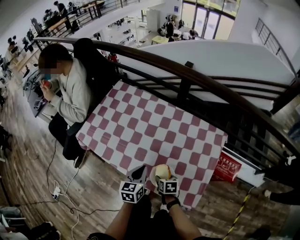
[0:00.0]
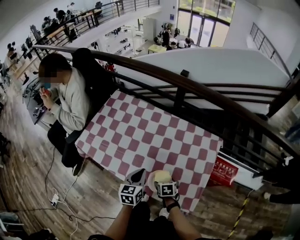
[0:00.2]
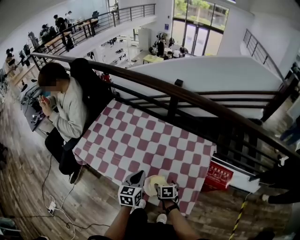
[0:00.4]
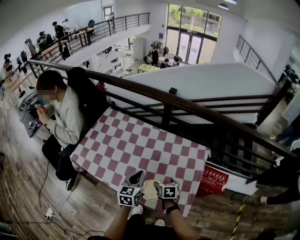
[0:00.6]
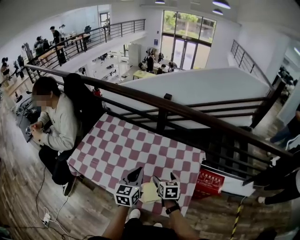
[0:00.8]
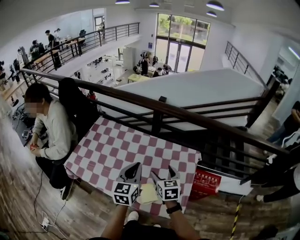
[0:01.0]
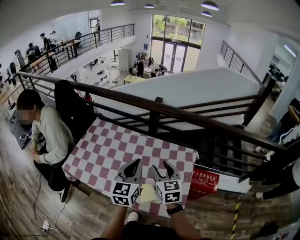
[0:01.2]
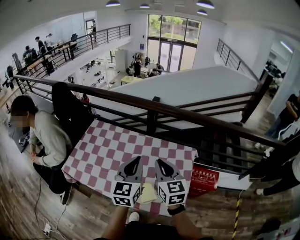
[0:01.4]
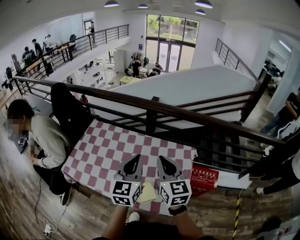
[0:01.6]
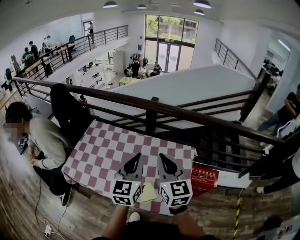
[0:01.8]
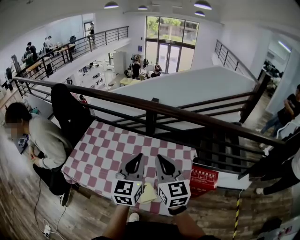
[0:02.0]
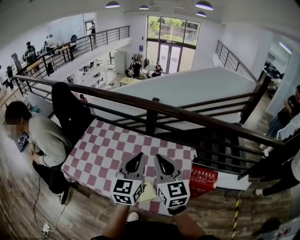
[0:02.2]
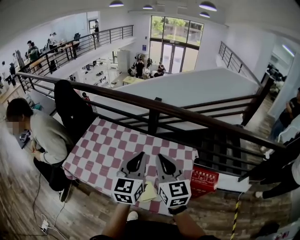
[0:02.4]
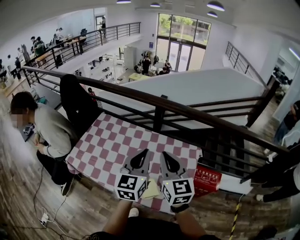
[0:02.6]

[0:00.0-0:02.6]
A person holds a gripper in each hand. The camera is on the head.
0:00.0 to 0:01.2: The two grippers go roughly 30 cm upward. The left gripper rotates approximately 30 degrees, while the right gripper tilts its fingers some 40 degrees upward, and opens, then closes again.
0:01.2 to 0:02.6: The right gripper travels upward by roughly 10 cm, and closes its fingers.

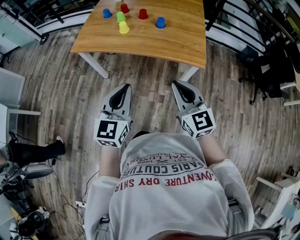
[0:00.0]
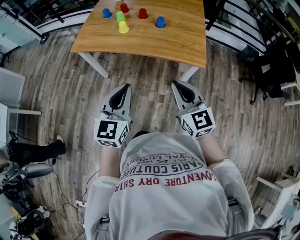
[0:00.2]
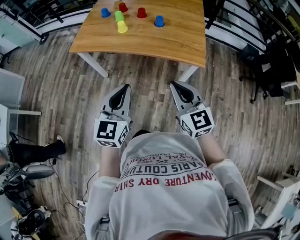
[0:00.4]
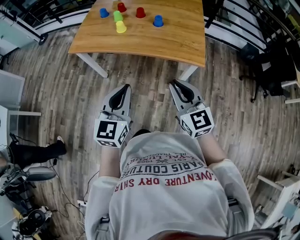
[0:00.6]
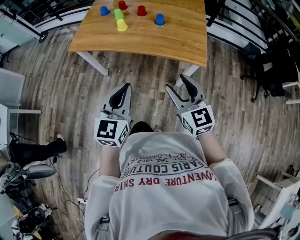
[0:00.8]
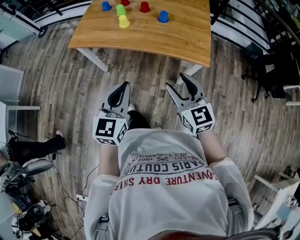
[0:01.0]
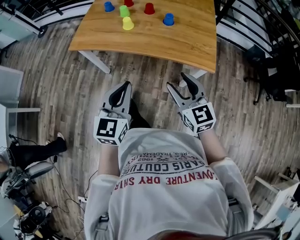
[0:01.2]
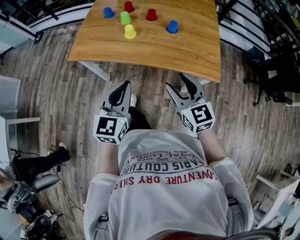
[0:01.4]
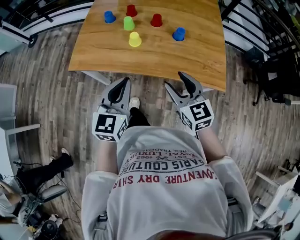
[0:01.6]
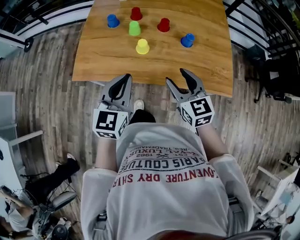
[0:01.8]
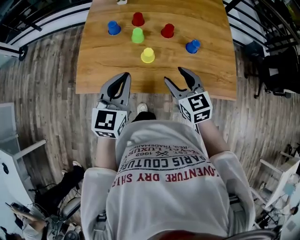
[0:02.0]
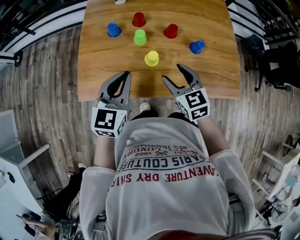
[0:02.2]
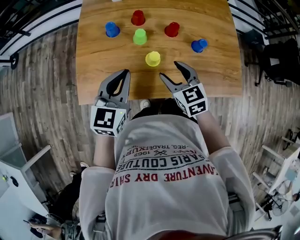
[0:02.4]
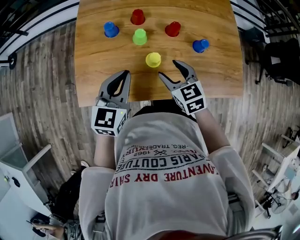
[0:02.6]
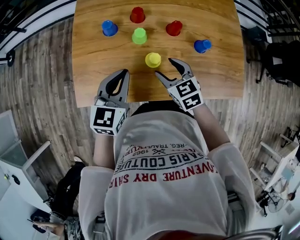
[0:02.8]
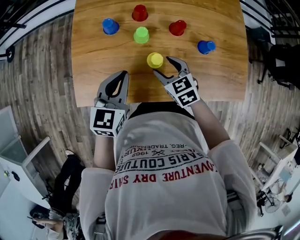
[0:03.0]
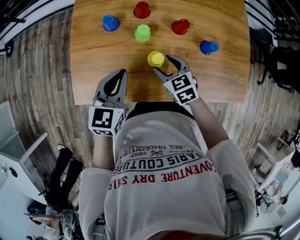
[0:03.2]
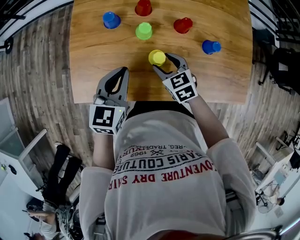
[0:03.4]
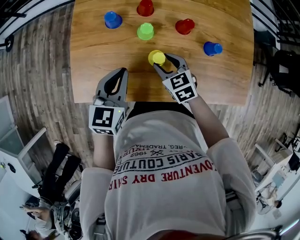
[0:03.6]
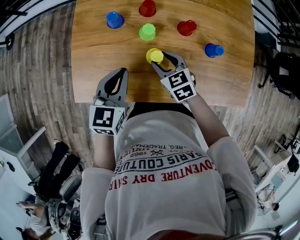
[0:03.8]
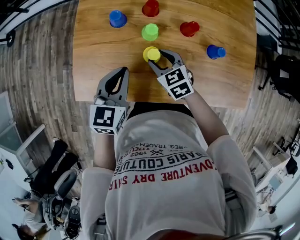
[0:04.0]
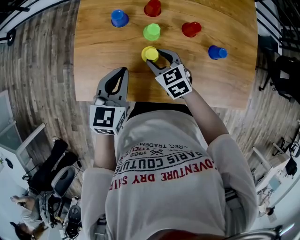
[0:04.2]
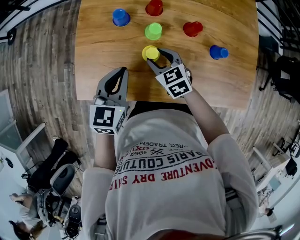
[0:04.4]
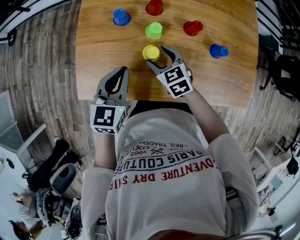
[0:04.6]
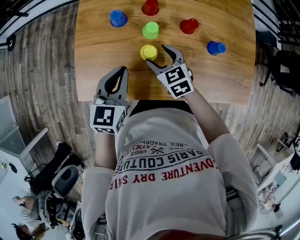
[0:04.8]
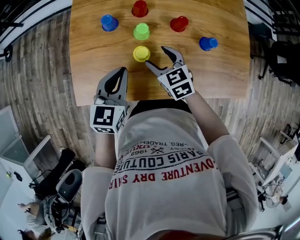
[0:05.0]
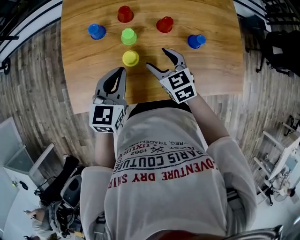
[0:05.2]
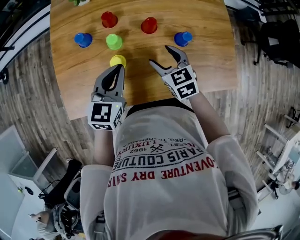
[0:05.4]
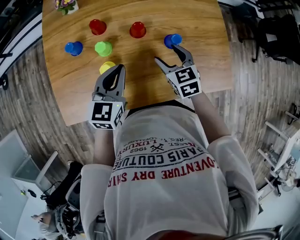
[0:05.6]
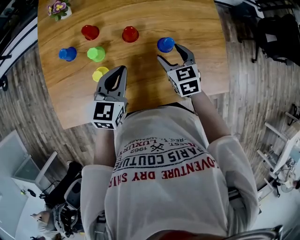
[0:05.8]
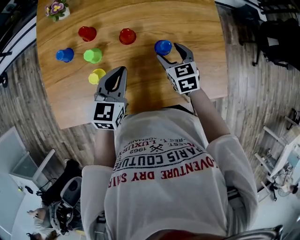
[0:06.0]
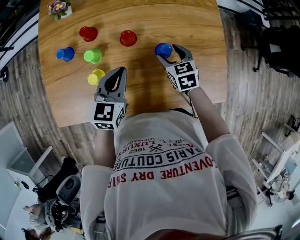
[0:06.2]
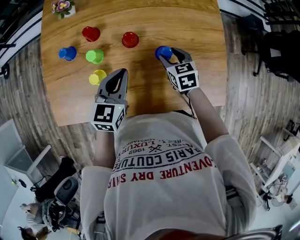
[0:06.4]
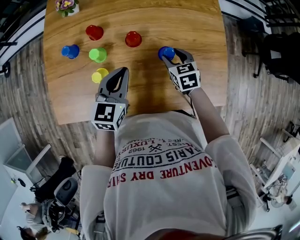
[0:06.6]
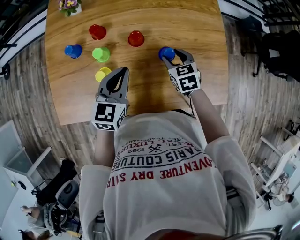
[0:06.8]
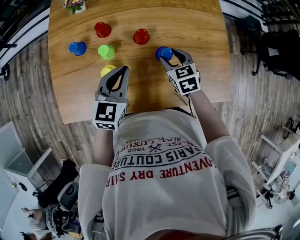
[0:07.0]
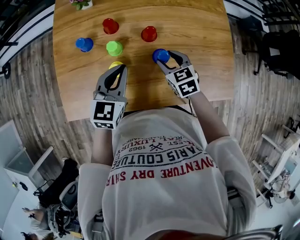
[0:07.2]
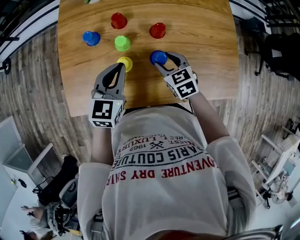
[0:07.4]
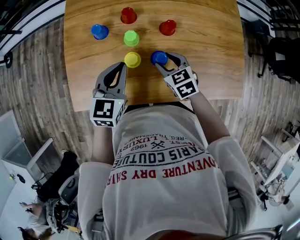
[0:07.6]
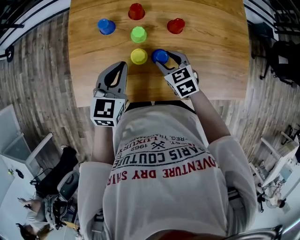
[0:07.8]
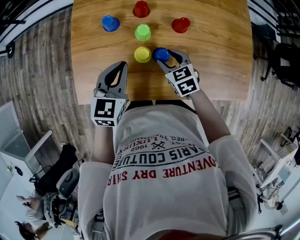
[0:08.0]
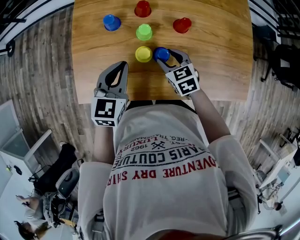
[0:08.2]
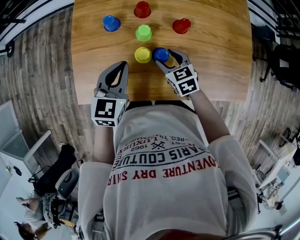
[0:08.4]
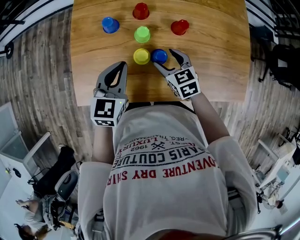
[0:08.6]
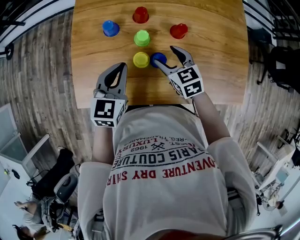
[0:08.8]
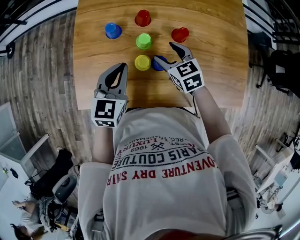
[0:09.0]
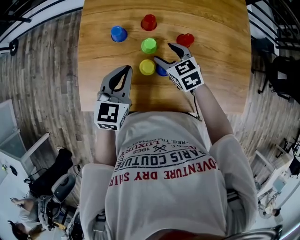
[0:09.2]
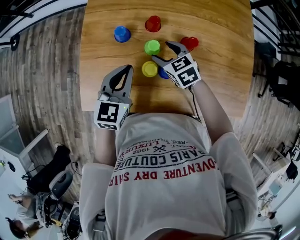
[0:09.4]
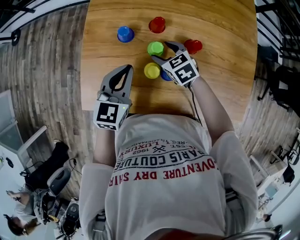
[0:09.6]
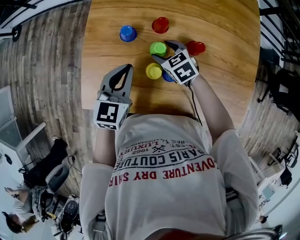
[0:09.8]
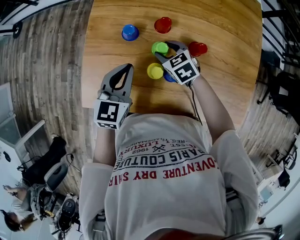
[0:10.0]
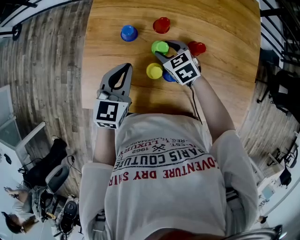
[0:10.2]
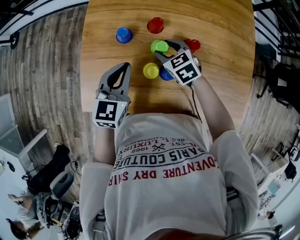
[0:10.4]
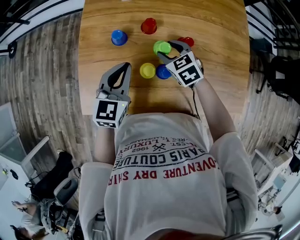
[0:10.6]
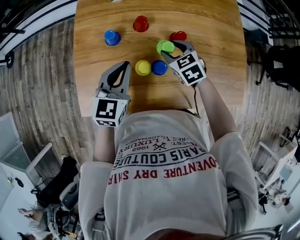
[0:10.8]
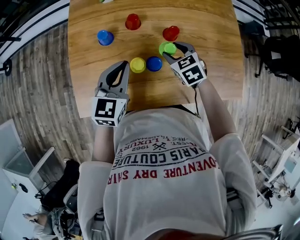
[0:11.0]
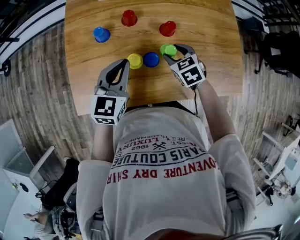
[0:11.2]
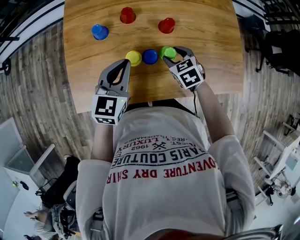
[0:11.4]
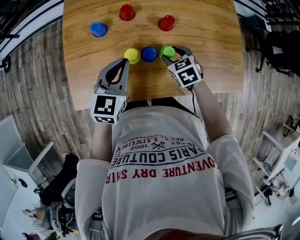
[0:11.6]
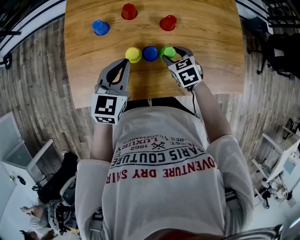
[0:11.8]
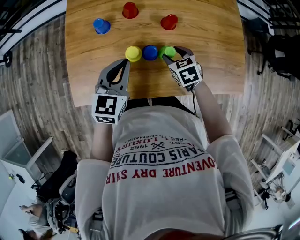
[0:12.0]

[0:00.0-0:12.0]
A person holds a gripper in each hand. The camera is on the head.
0:00.0 to 0:01.6: The grippers both shift forward and to the left by about 25 cm. The right gripper opens up.
0:01.6 to 0:03.0: The right gripper heads forward, to the left and downward, covering approximately 30 cm, and turns by approximately 30 degrees. Meanwhile the left gripper is displaced forward and to the left by approximately 25 cm.
0:03.0 to 0:04.4: The right gripper moves to the left, some 5 cm.
0:04.4 to 0:06.0: The two grippers go roughly 25 cm to the right. The right gripper turns by some 30 degrees.
0:06.0 to 0:07.6: The grippers both shift to the left by roughly 20 cm.
0:07.6 to 0:09.0: The right gripper moves forward, approximately 5 cm.
0:09.0 to 0:10.4: The right gripper is displaced forward by about 5 cm.
0:10.4 to 0:12.0: The right gripper is displaced to the right and backward by about 15 cm, and changes its angle by approximately 20 degrees. Meanwhile the left gripper shifts some 10 cm to the right and backward.

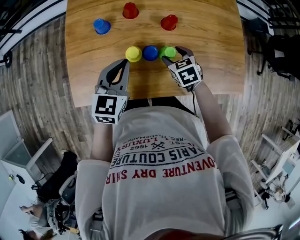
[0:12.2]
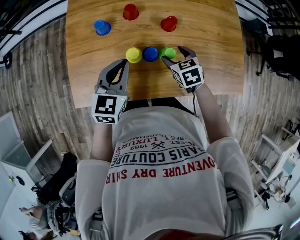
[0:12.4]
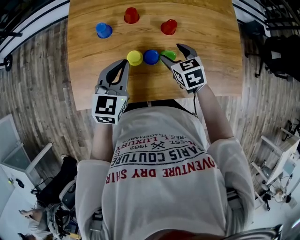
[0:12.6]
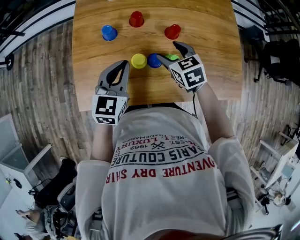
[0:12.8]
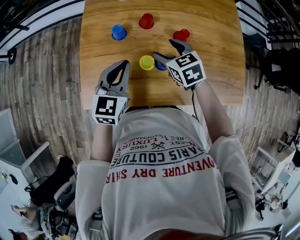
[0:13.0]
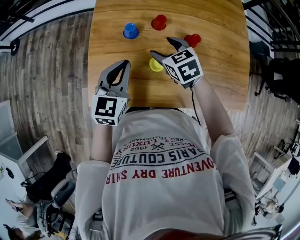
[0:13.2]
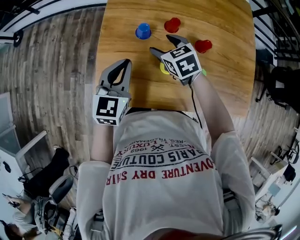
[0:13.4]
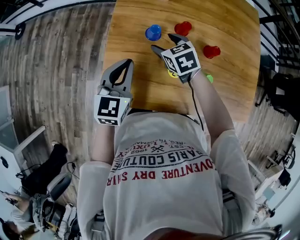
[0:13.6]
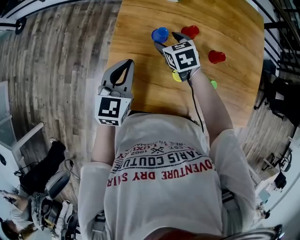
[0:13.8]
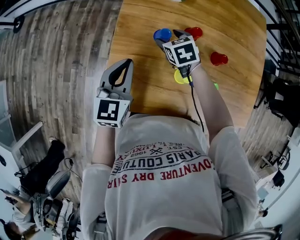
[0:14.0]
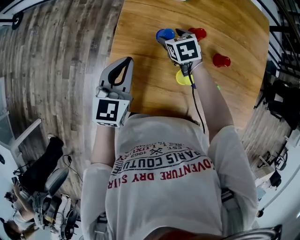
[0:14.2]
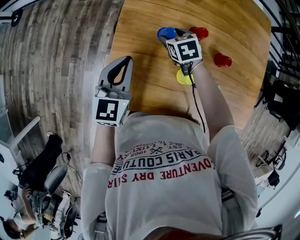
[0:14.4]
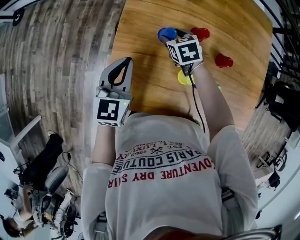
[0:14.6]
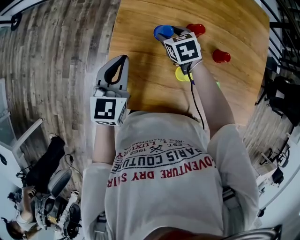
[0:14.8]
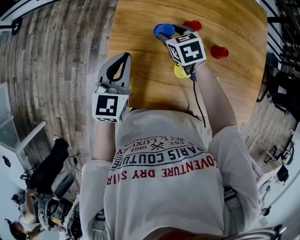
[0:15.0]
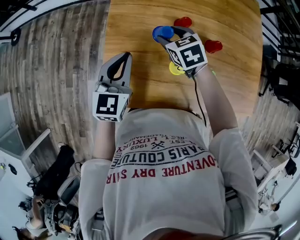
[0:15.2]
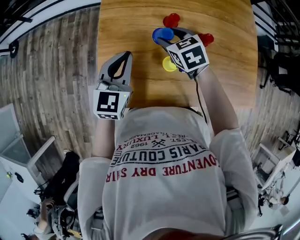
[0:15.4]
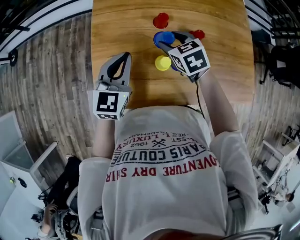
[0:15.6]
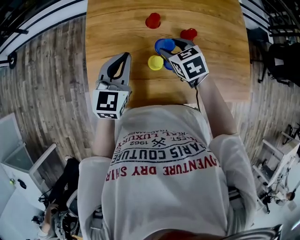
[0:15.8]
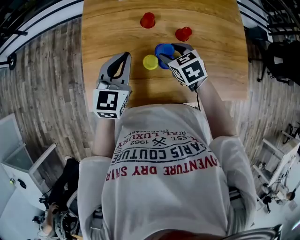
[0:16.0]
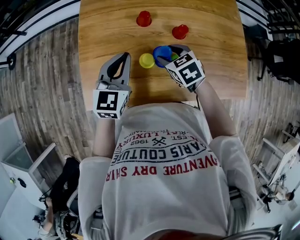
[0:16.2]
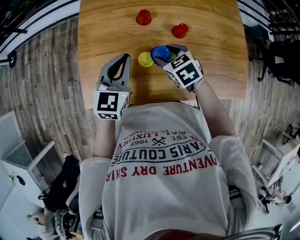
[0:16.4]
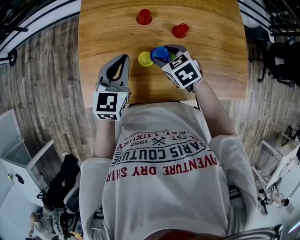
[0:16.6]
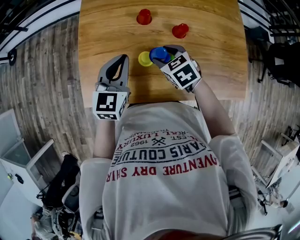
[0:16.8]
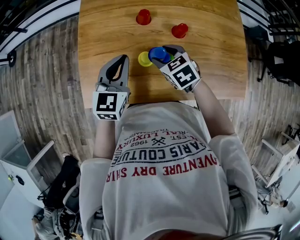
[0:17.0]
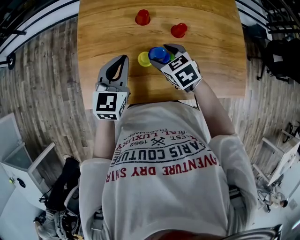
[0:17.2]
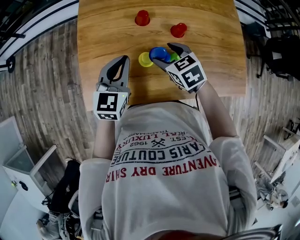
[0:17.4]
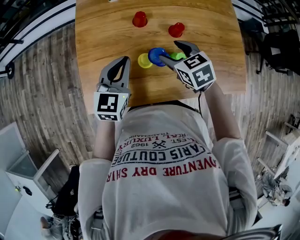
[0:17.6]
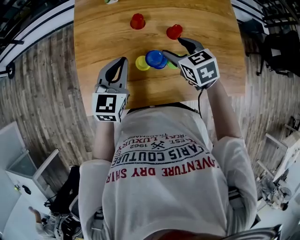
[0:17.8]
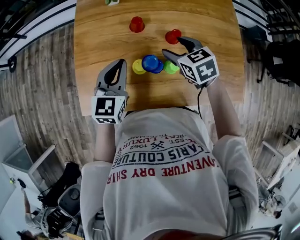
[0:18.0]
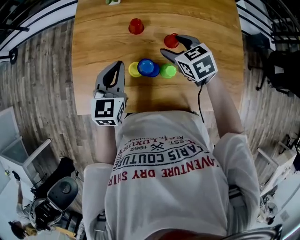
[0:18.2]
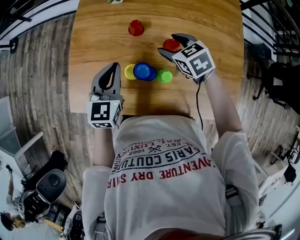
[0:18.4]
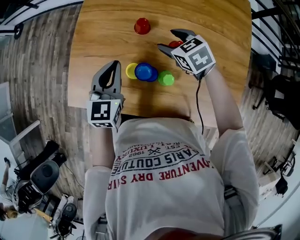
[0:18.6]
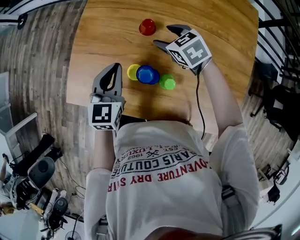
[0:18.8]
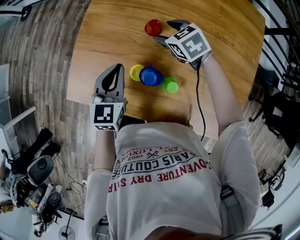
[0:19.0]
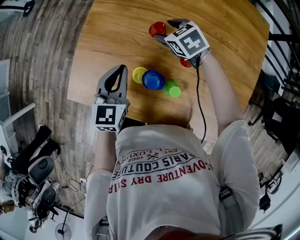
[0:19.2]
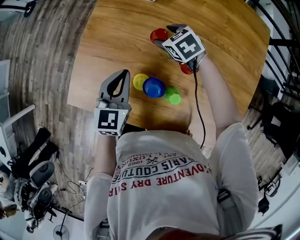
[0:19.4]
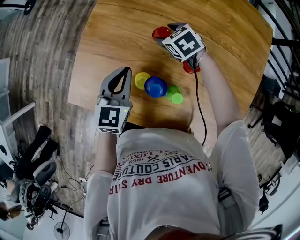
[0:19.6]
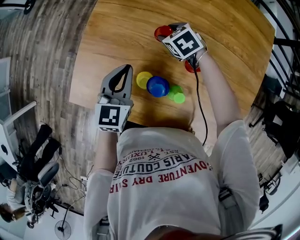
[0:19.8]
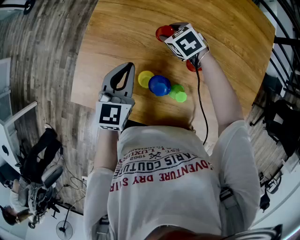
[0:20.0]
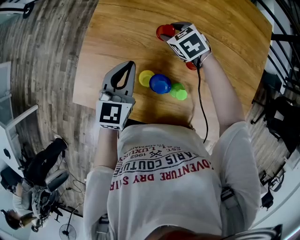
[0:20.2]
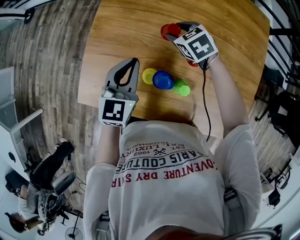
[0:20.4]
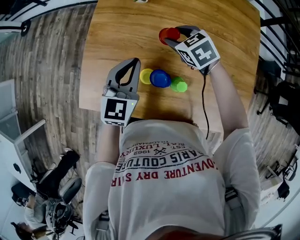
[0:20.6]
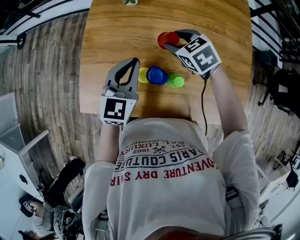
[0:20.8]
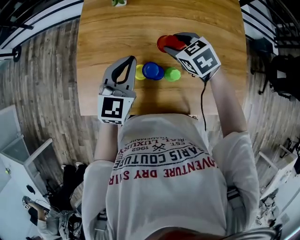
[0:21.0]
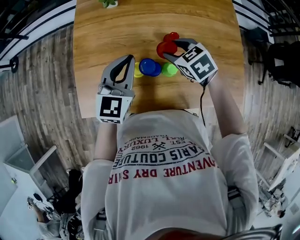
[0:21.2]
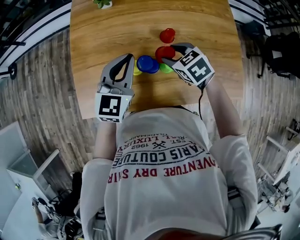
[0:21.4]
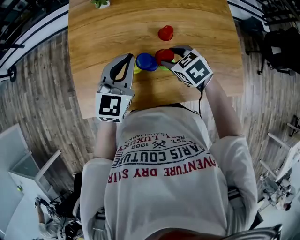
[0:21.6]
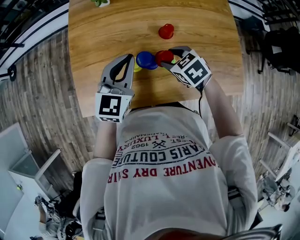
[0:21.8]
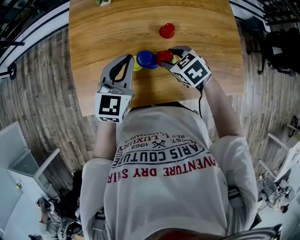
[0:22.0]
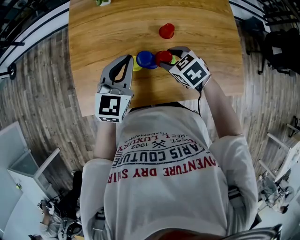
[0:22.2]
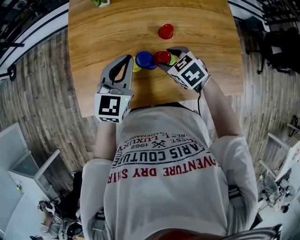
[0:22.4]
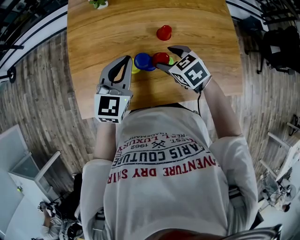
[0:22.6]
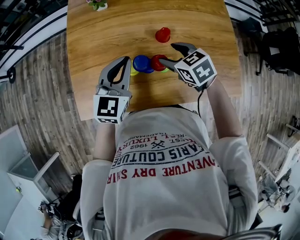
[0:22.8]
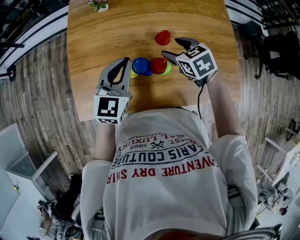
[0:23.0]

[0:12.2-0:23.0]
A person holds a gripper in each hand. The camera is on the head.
0:12.2 to 0:13.8: The left gripper heads to the left, covering some 20 cm. The right gripper moves to the left and forward, about 30 cm.
0:13.8 to 0:15.2: The grippers stay close to where they were, moving slightly.
0:15.2 to 0:16.8: The left gripper goes about 15 cm to the right; the right gripper shifts some 20 cm backward and to the right.
0:16.8 to 0:18.4: The left gripper ends up about 5 cm from where it was, while the right gripper heads to the right and forward, covering about 15 cm.
0:18.4 to 0:20.0: The left gripper ends up roughly 5 cm from where it was. Meanwhile the right gripper moves forward, downward and to the left, about 20 cm, and rotates some 20 degrees.
0:20.0 to 0:21.4: The right gripper heads backward and upward, covering about 25 cm, and changes its angle by about 20 degrees. The left gripper shifts roughly 10 cm upward, to the right and backward, and swivels about 30 degrees.
0:21.4 to 0:23.0: The grippers move only a little.
